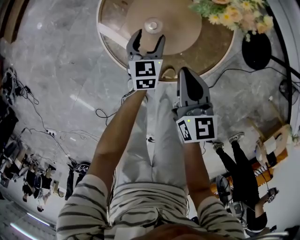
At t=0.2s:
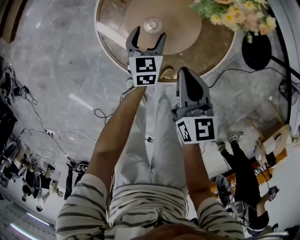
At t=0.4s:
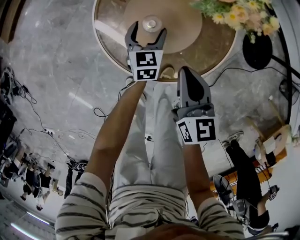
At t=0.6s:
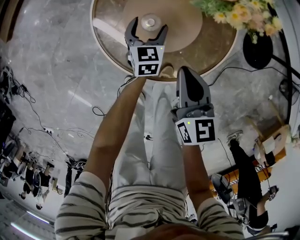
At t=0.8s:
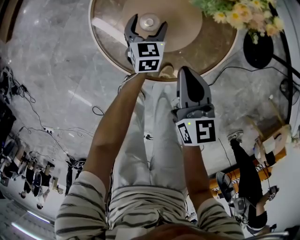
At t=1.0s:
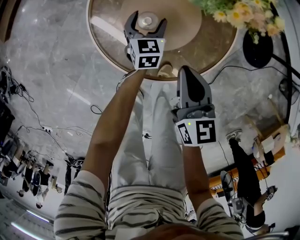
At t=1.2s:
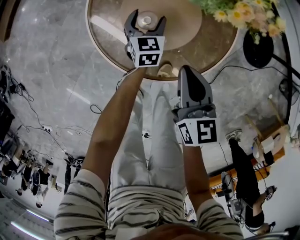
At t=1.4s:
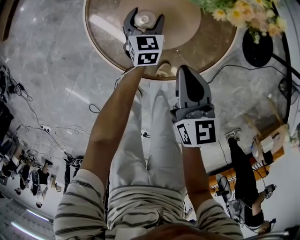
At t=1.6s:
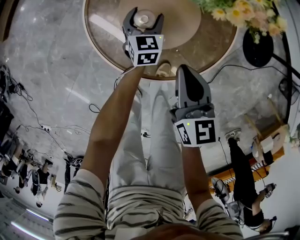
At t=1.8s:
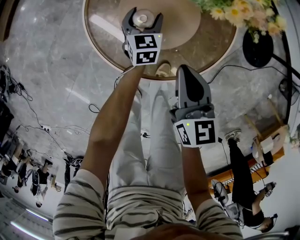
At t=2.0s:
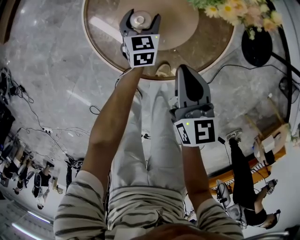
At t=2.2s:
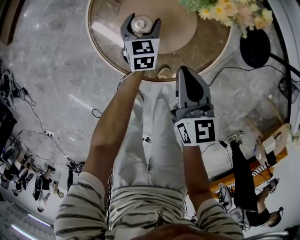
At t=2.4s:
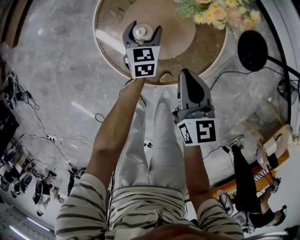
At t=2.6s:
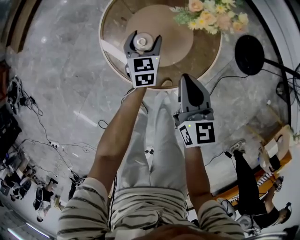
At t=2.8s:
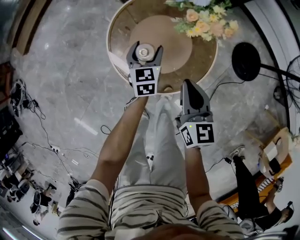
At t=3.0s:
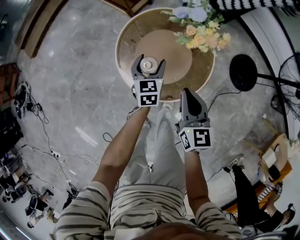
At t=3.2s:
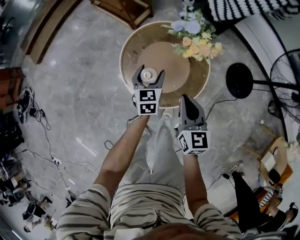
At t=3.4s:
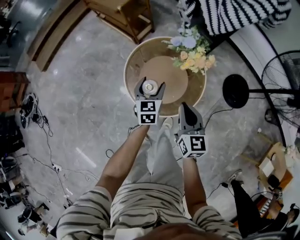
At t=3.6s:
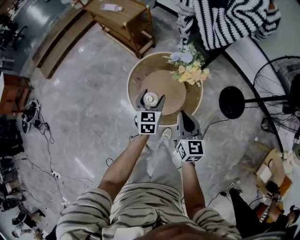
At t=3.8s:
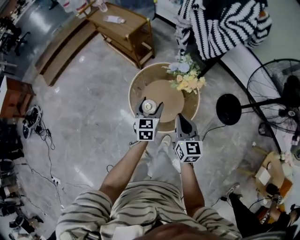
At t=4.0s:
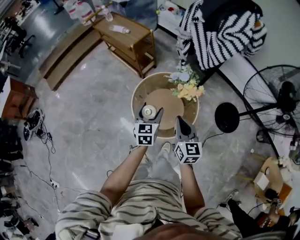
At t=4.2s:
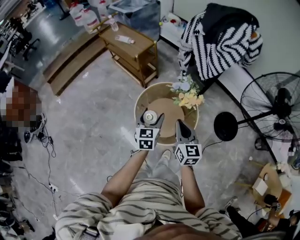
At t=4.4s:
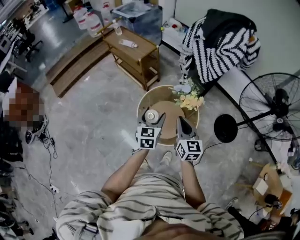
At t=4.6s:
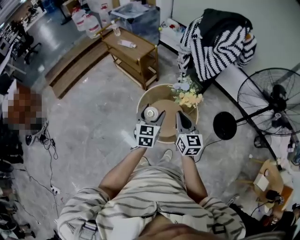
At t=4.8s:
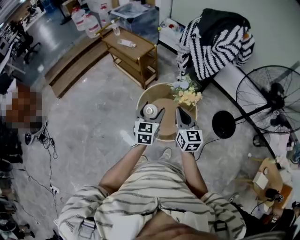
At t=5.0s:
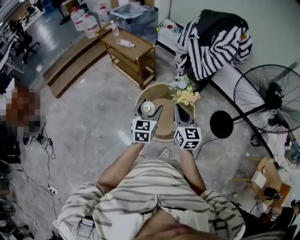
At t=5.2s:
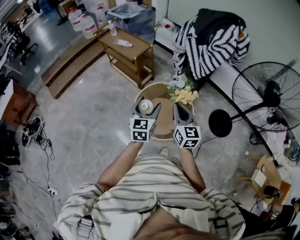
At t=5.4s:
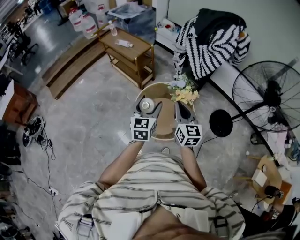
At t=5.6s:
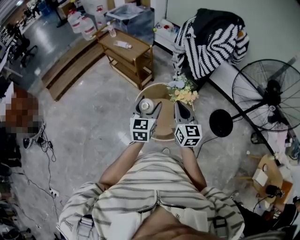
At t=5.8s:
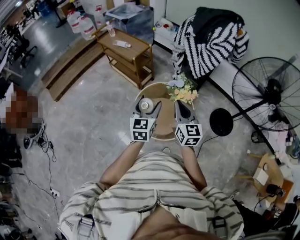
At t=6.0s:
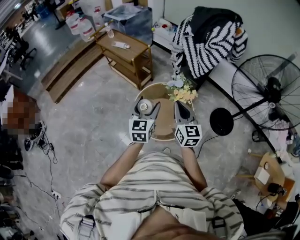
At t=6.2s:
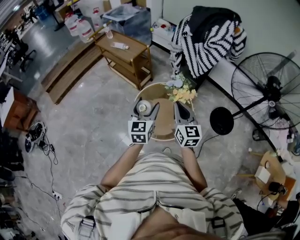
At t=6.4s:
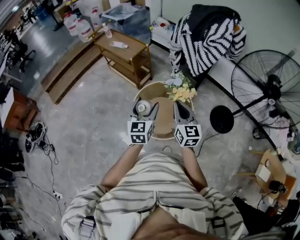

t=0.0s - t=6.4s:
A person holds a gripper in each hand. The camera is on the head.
t=0.0s - t=1.6s: The left gripper moves downward and forward, about 10 cm.
t=1.6s - t=3.2s: Both grippers move upward, roughly 20 cm.
t=3.2s - t=4.8s: Both grippers move upward, roughly 30 cm.
t=4.8s - t=6.4s: The grippers move only a little.

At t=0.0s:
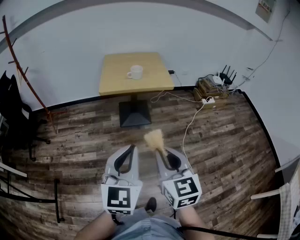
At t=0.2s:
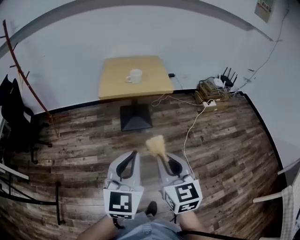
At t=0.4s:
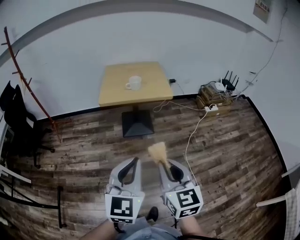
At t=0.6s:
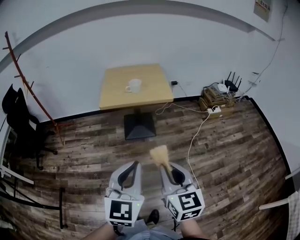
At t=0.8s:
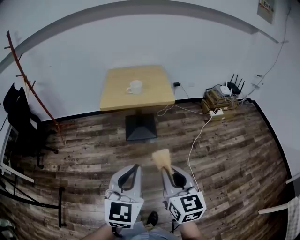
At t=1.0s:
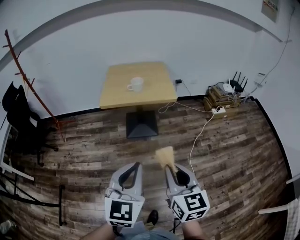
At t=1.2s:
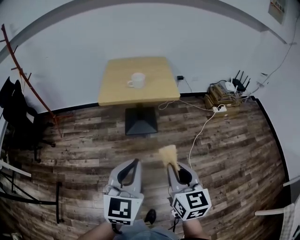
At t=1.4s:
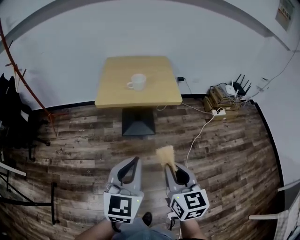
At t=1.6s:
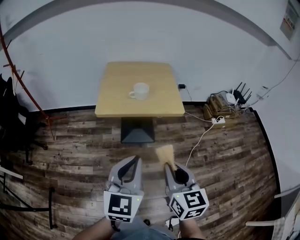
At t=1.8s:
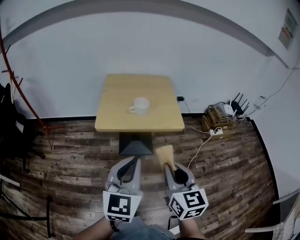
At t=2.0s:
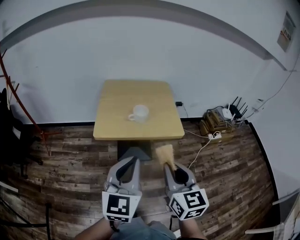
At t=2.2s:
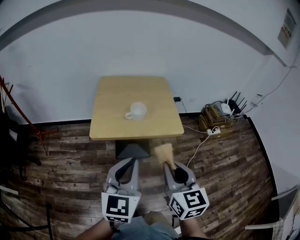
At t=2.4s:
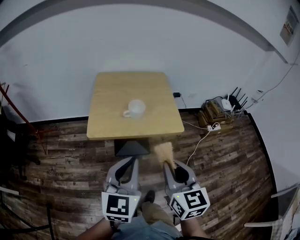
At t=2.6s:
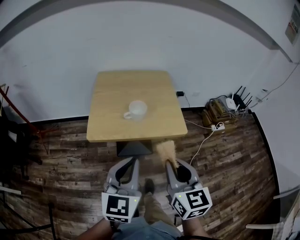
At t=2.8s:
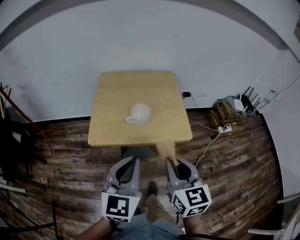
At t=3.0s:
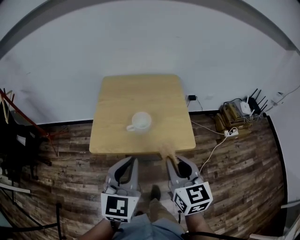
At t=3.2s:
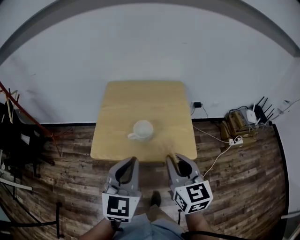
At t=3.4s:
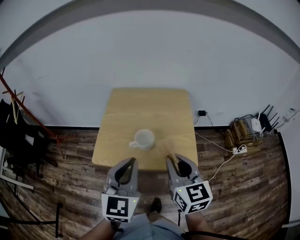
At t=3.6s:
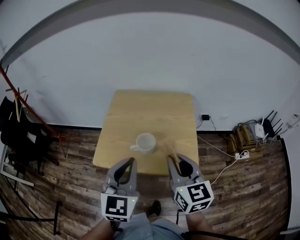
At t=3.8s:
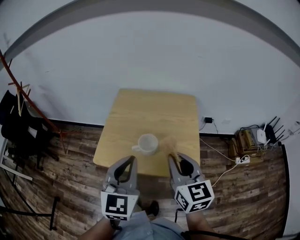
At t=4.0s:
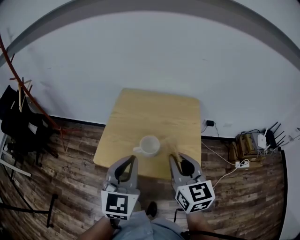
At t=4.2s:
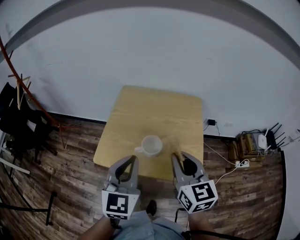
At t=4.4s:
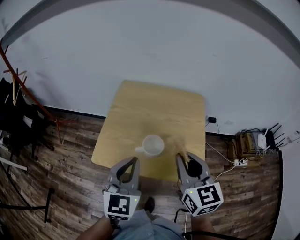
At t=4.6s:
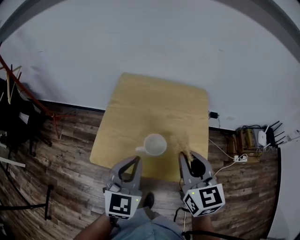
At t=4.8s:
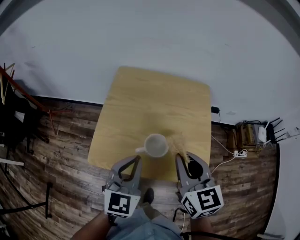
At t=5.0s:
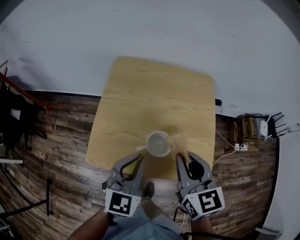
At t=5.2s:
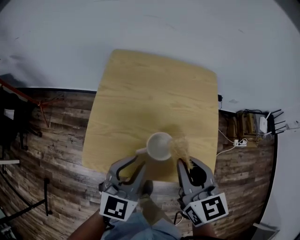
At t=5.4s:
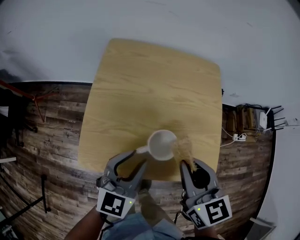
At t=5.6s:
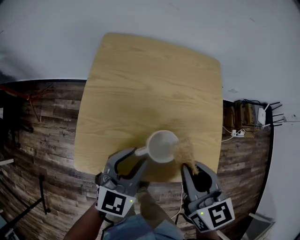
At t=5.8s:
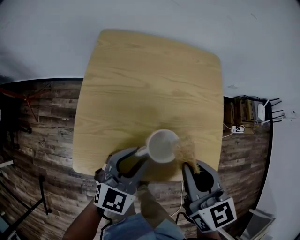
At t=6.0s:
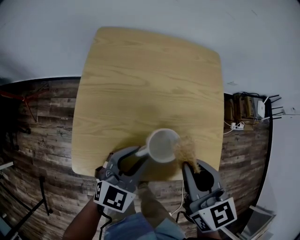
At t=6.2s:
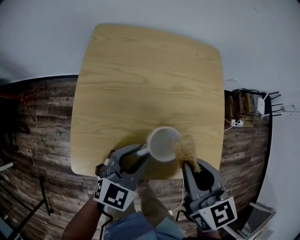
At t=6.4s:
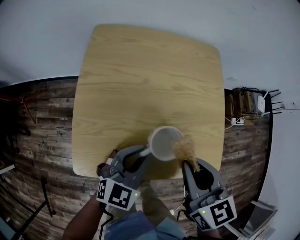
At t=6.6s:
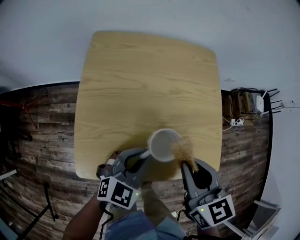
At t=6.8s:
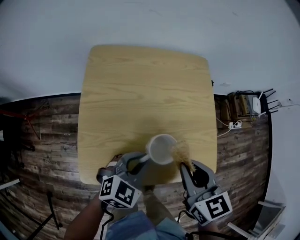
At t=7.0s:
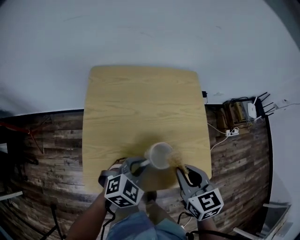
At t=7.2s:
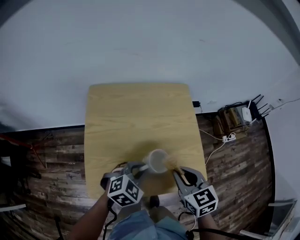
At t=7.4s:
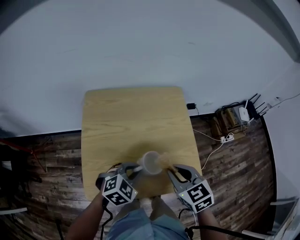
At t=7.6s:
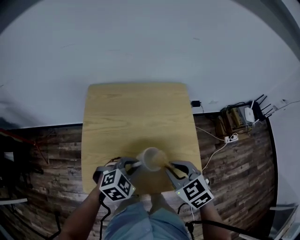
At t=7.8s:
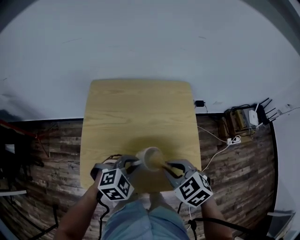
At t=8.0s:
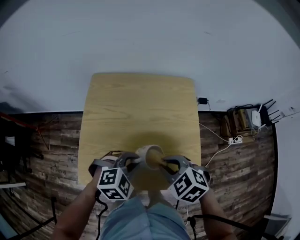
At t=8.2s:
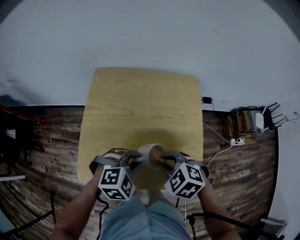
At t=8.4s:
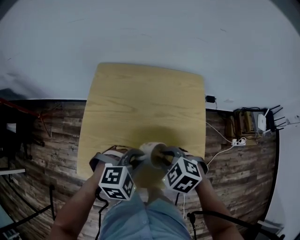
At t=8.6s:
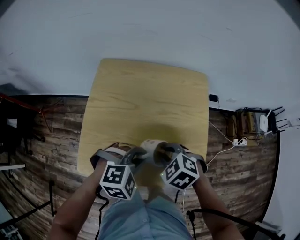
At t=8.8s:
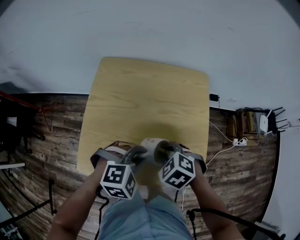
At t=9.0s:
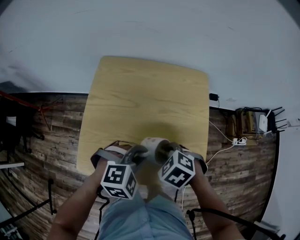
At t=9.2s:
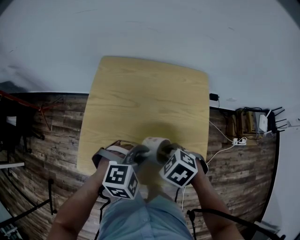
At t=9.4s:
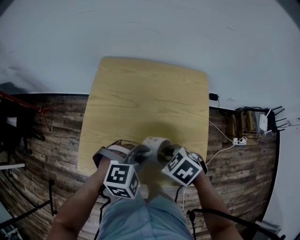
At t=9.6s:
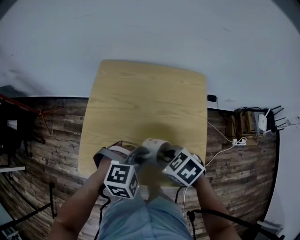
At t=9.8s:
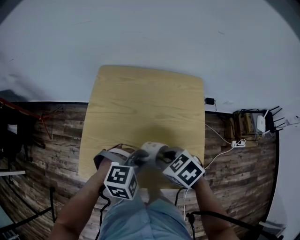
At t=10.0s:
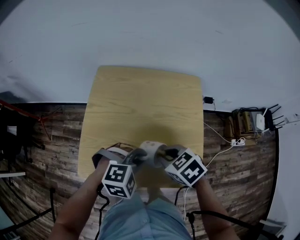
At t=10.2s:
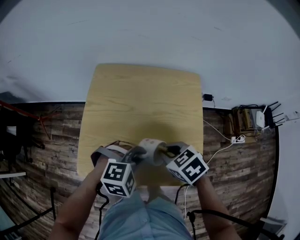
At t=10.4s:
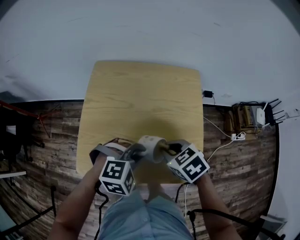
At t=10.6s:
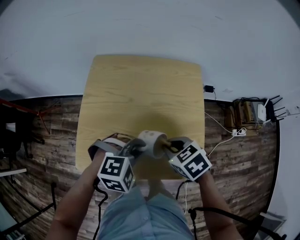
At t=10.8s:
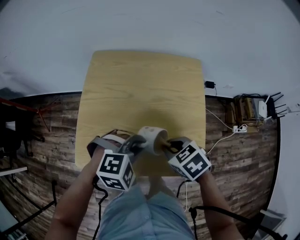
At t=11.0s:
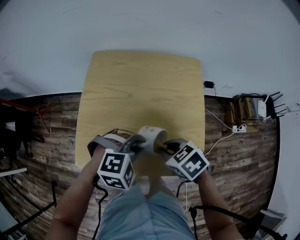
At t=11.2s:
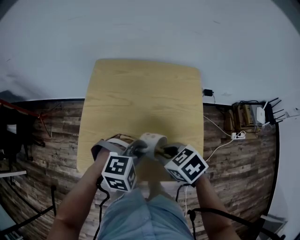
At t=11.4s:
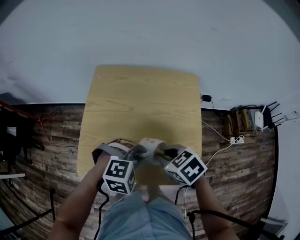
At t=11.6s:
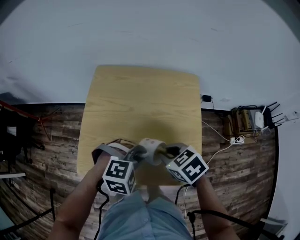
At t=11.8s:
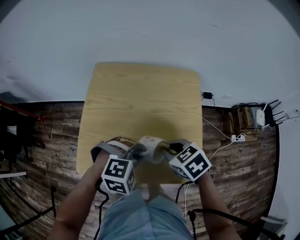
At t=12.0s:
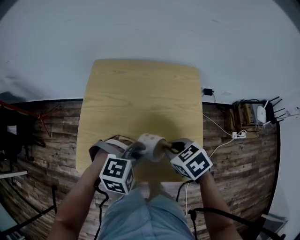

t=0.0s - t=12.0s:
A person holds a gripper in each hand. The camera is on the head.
t=0.0s - t=1.6s: Both grippers travel together forward, some 20 cm.
t=1.6s - t=3.0s: The grippers both shift forward by about 25 cm.
t=3.0s - t=4.4s: The two grippers go roughly 15 cm forward.
t=4.4s - t=6.0s: The left gripper goes approximately 20 cm downward, rotates about 30 degrees, and opens its fingers. Meanwhile the right gripper shifts approximately 10 cm downward.
t=6.0s - t=7.6s: The left gripper rotates roughly 40 degrees. Meanwhile the right gripper swivels some 30 degrees.
t=7.6s - t=9.0s: The right gripper is displaced downward by roughly 10 cm, and swivels approximately 40 degrees.
t=9.0s - t=10.4s: The right gripper rotates some 20 degrees.
t=10.4s - t=12.0s: There are only small adjustments of the grippers.

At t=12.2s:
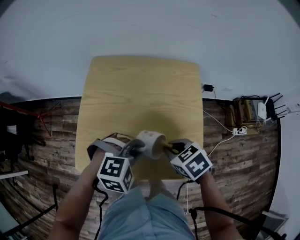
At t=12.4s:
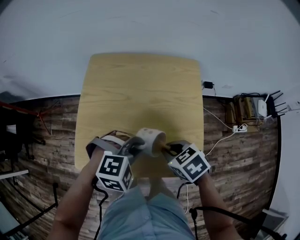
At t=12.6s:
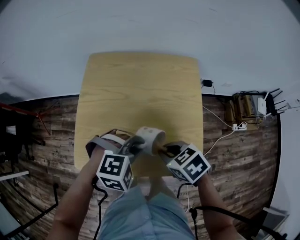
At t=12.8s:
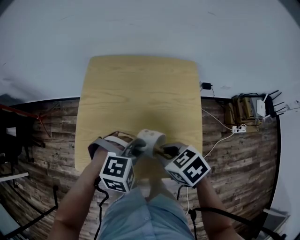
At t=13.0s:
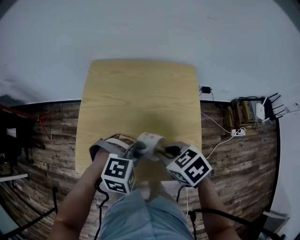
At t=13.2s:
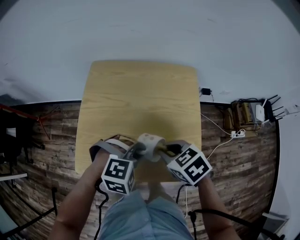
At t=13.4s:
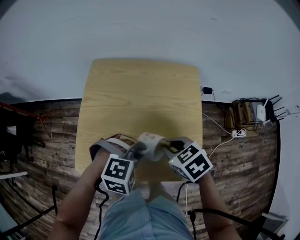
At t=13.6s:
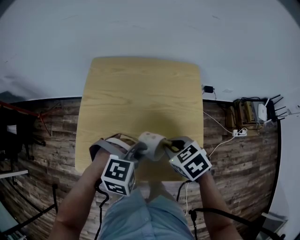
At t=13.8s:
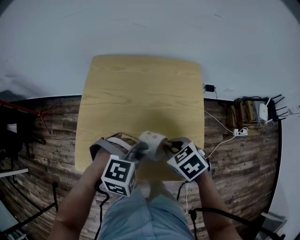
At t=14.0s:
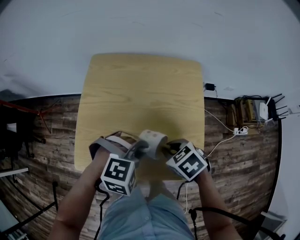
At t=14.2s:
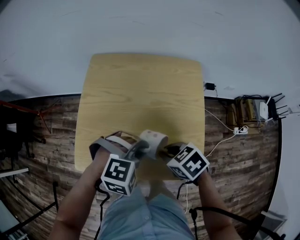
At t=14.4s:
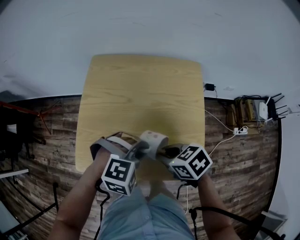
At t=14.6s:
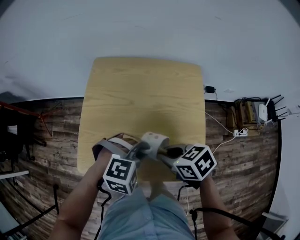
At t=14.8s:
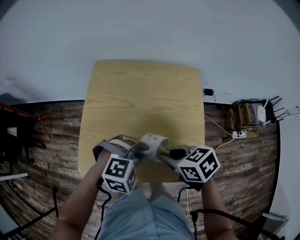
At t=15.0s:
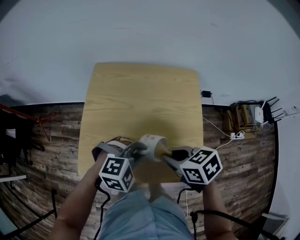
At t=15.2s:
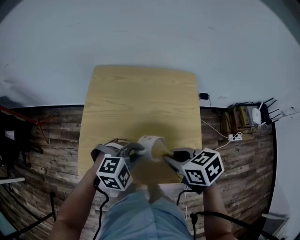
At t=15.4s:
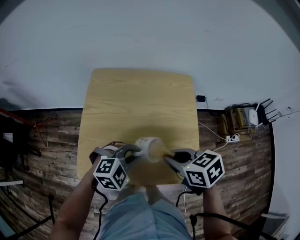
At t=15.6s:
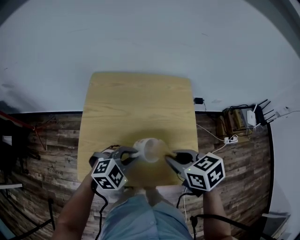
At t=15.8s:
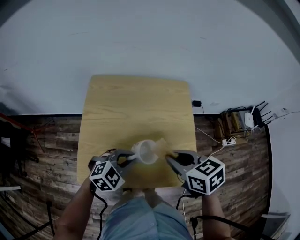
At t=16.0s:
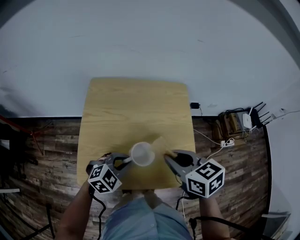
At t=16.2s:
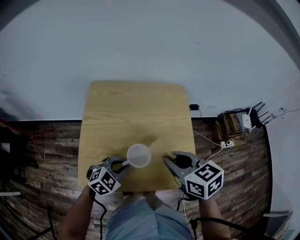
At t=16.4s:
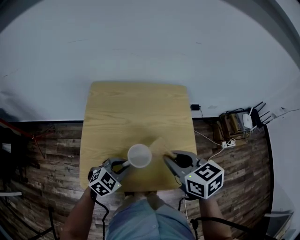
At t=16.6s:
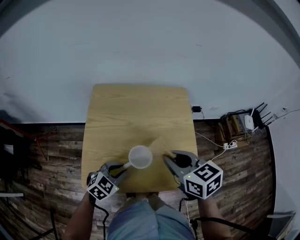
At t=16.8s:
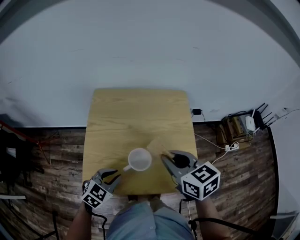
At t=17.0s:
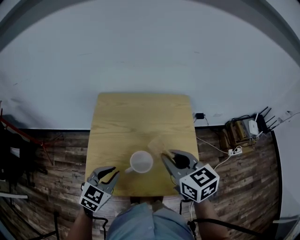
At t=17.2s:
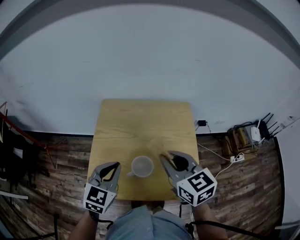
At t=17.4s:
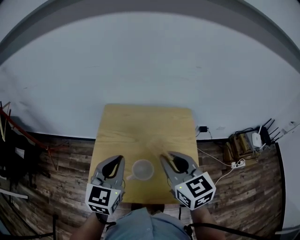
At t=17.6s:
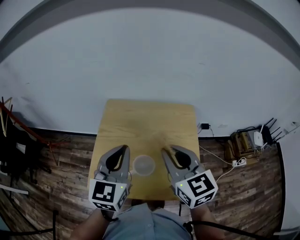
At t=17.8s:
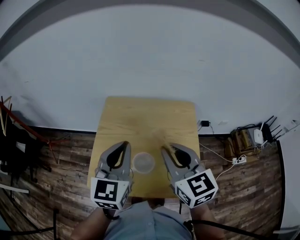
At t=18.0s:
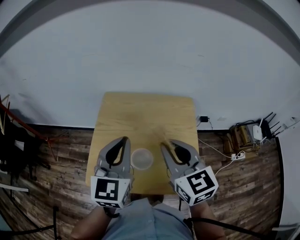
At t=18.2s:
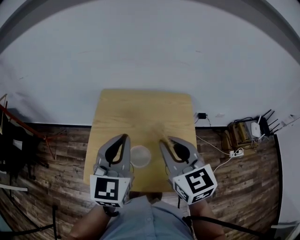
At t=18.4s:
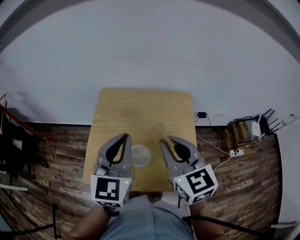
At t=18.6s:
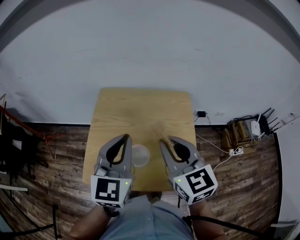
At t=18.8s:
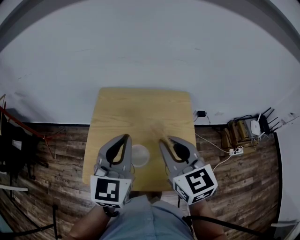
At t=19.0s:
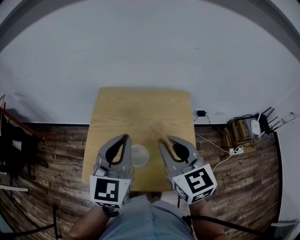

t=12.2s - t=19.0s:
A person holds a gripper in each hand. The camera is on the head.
t=12.2s - t=13.6s: The grippers stay close to where they were, moving slightly.
t=13.6s - t=15.0s: The right gripper moves roughly 5 cm.
t=15.0s - t=16.2s: The right gripper goes approximately 10 cm upward, and swivels about 20 degrees. The left gripper moves about 10 cm, and changes its angle by some 30 degrees.
t=16.2s - t=17.6s: The left gripper heads upward, covering roughly 25 cm, and tilts its fingers about 30 degrees upward. Meanwhile the right gripper is displaced upward by approximately 10 cm, and changes its angle by approximately 30 degrees.
t=17.6s - t=19.0s: The grippers make only small movements.
